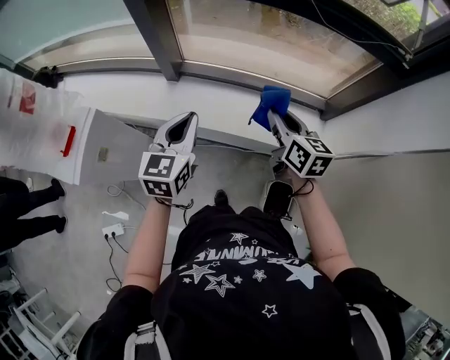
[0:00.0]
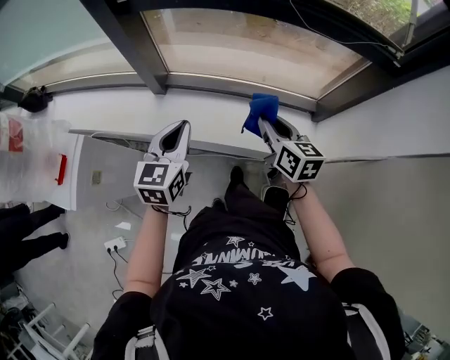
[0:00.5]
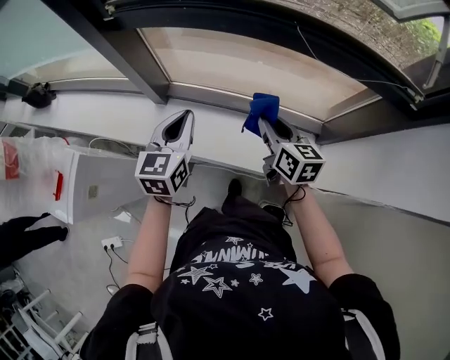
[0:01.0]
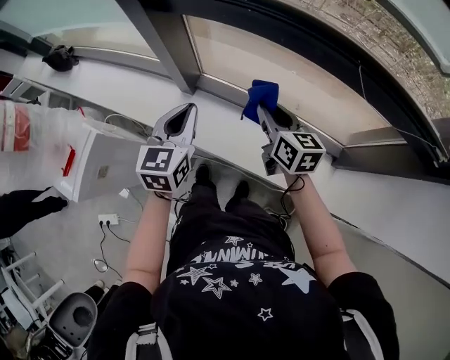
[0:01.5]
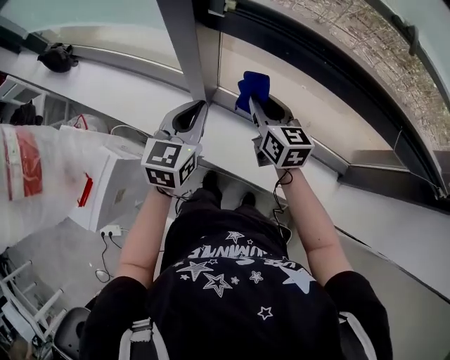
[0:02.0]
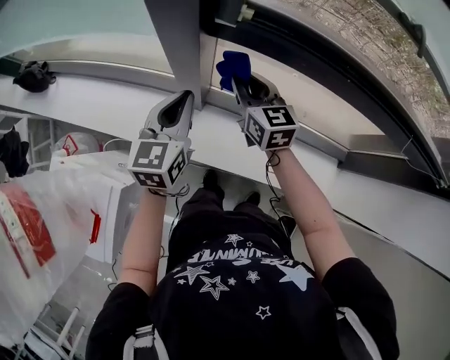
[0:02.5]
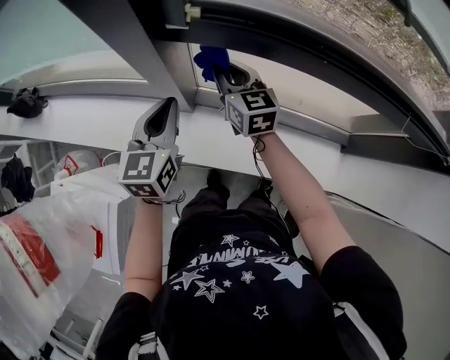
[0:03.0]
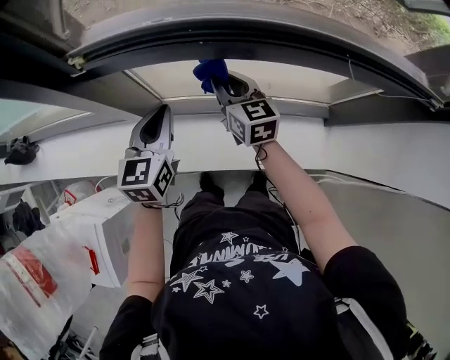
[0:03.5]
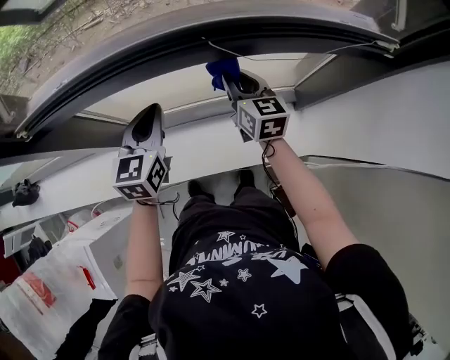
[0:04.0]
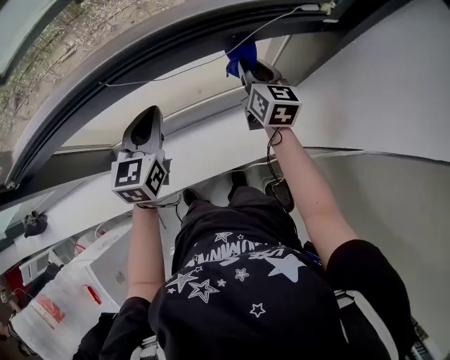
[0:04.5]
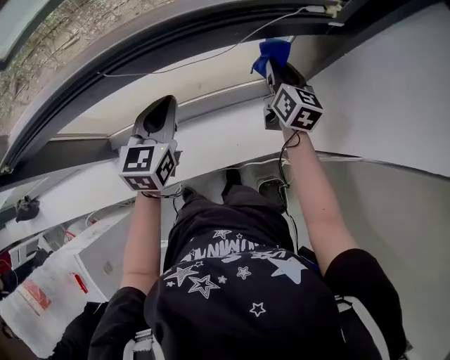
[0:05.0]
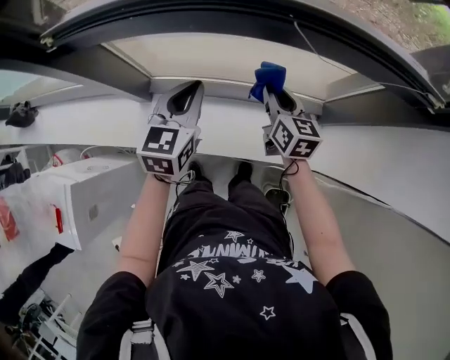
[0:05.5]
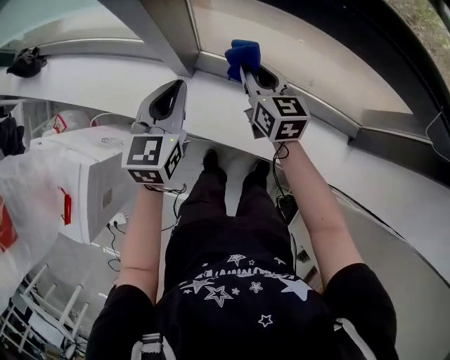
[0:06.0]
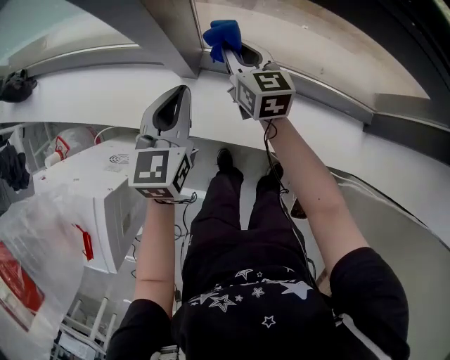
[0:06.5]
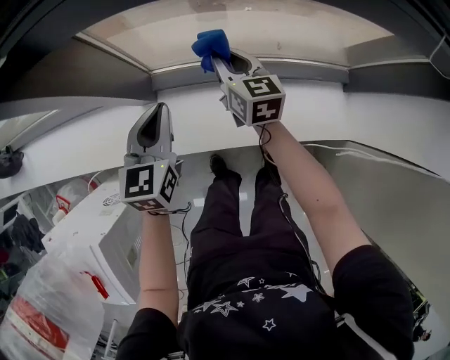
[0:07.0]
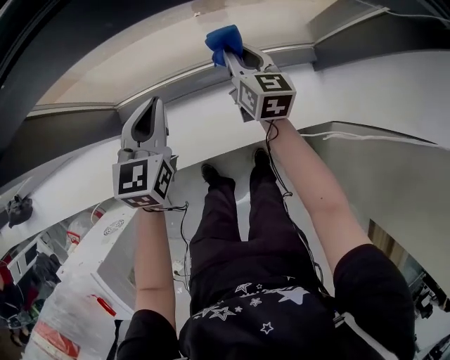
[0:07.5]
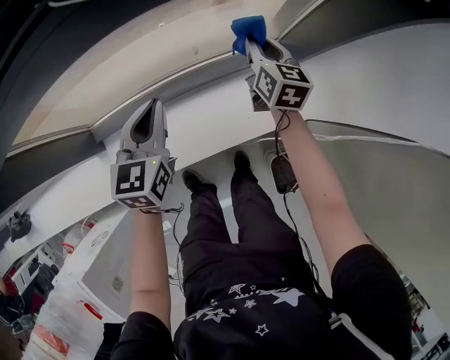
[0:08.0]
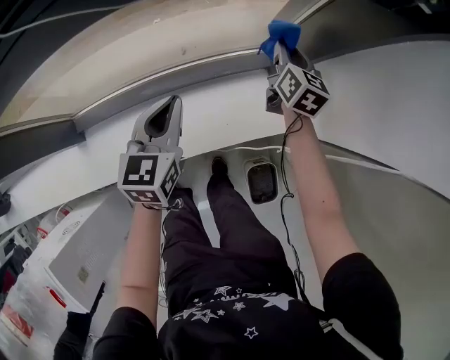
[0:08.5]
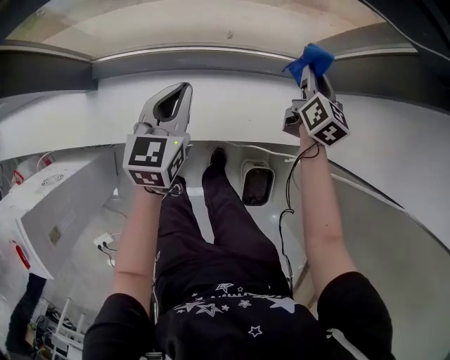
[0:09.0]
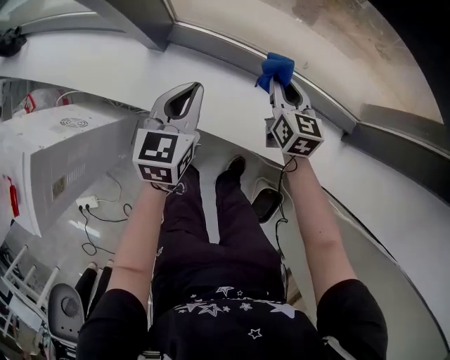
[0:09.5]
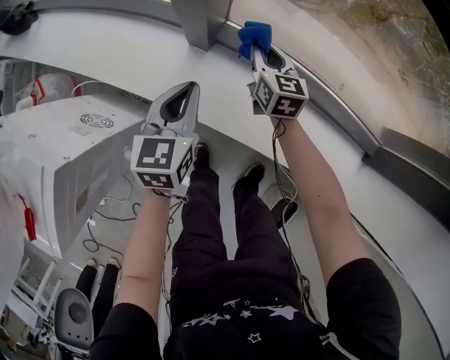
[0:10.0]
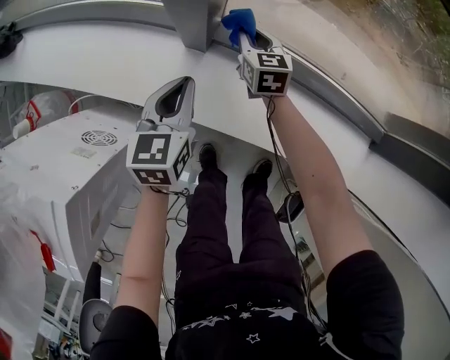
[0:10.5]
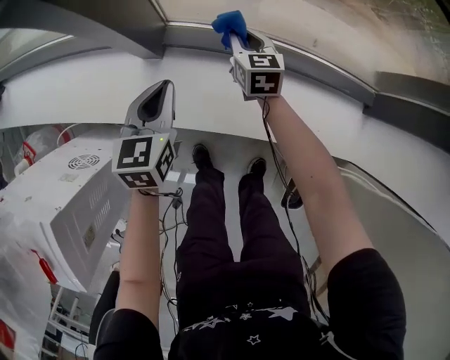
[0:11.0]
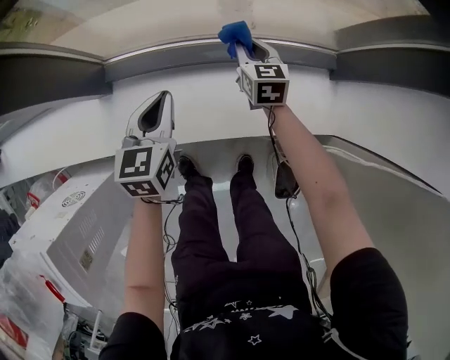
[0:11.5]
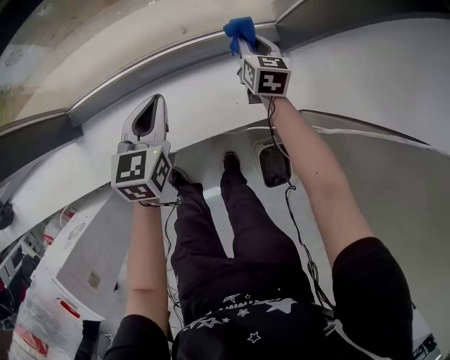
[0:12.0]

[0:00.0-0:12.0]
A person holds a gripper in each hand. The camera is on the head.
0:00.0 to 0:02.0: Both grippers move forward and to the left, some 35 cm.
0:02.0 to 0:04.0: Both grippers move to the right, about 30 cm. The left gripper changes its angle by approximately 20 degrees. Meanwhile the right gripper changes its angle by about 30 degrees.
0:04.0 to 0:06.0: The right gripper moves about 35 cm, and swivels approximately 30 degrees, while the left gripper ends up about 30 cm from where it was, and swivels some 20 degrees.
0:06.0 to 0:08.0: The right gripper changes place by some 50 cm, and rotates approximately 50 degrees. The left gripper changes place by about 35 cm, and rotates some 30 degrees.
0:08.0 to 0:10.0: Both grippers are carried some 50 cm. The left gripper changes its angle by approximately 40 degrees. The right gripper rotates roughly 50 degrees.
0:10.0 to 0:12.0: The two grippers travel together, some 50 cm. The right gripper turns by about 40 degrees. The left gripper turns by about 30 degrees.

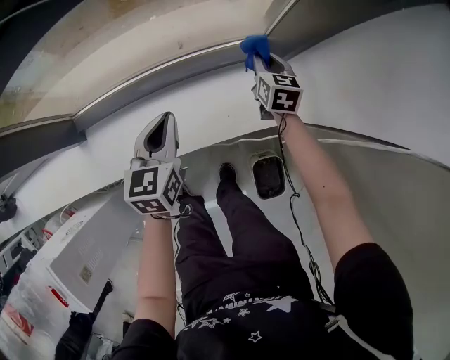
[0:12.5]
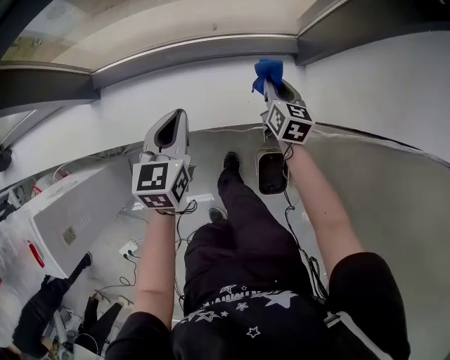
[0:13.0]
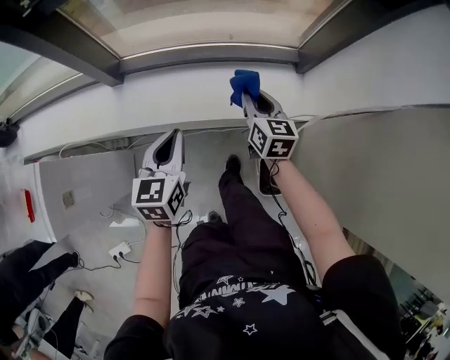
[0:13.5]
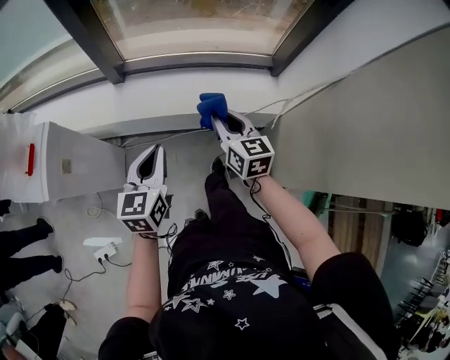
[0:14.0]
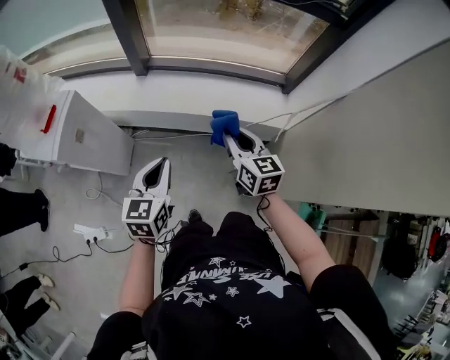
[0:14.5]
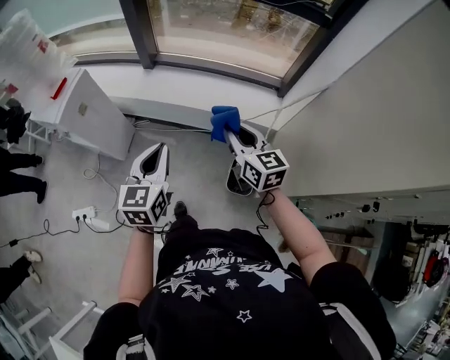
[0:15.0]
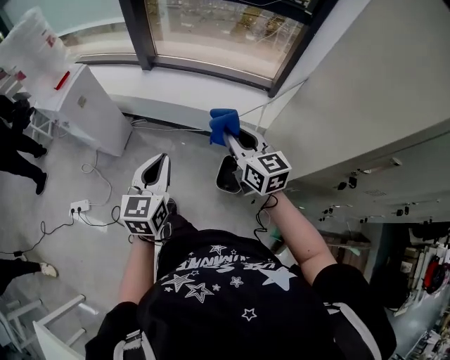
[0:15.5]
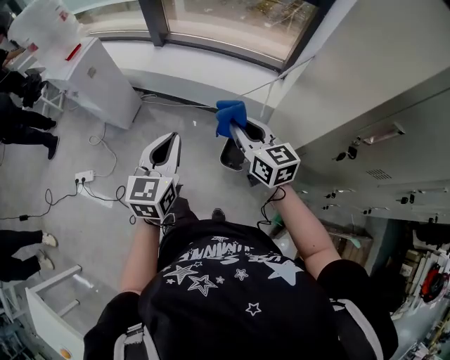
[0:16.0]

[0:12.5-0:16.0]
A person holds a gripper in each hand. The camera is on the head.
0:12.5 to 0:14.5: The two grippers travel together, approximately 50 cm. The right gripper swivels approximately 40 degrees.
0:14.5 to 0:16.0: Both grippers move backward and to the right, approximately 30 cm.

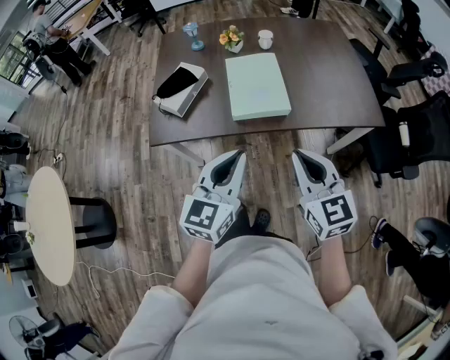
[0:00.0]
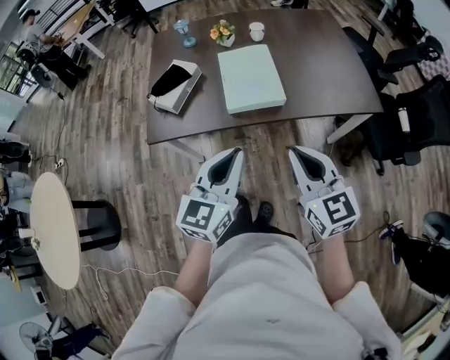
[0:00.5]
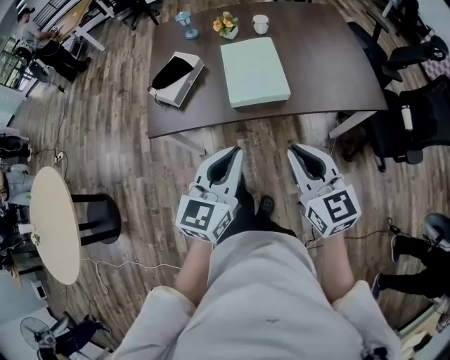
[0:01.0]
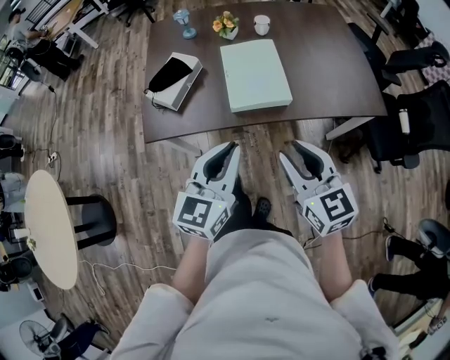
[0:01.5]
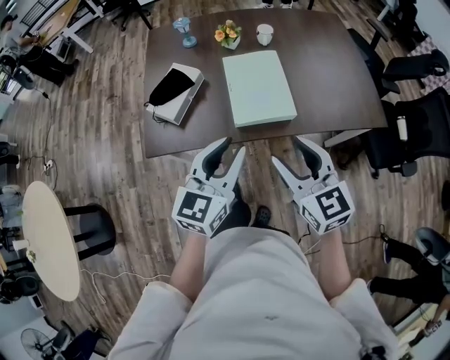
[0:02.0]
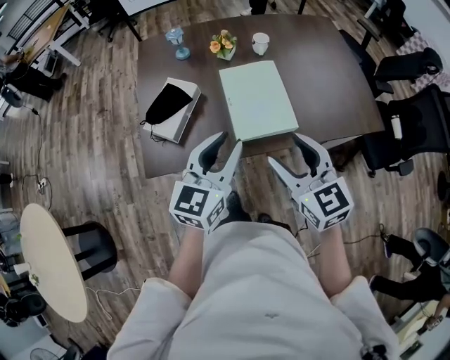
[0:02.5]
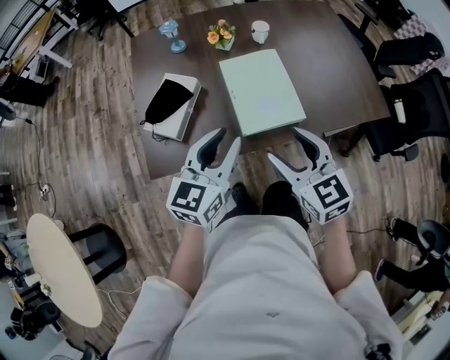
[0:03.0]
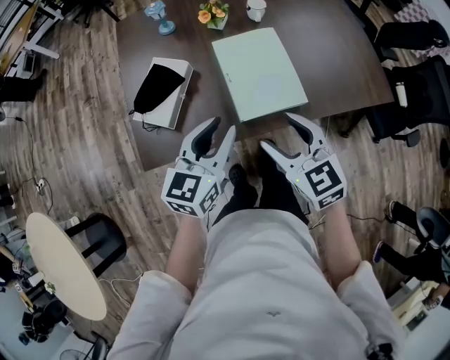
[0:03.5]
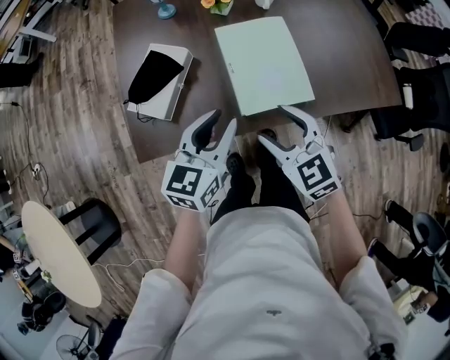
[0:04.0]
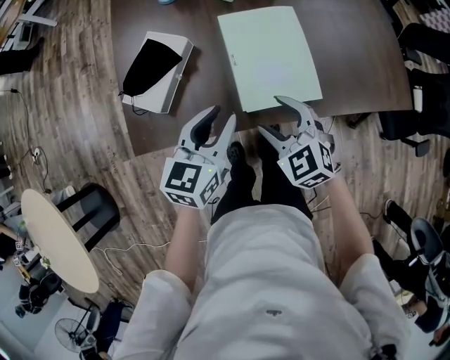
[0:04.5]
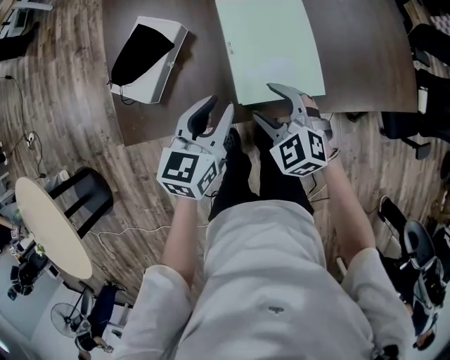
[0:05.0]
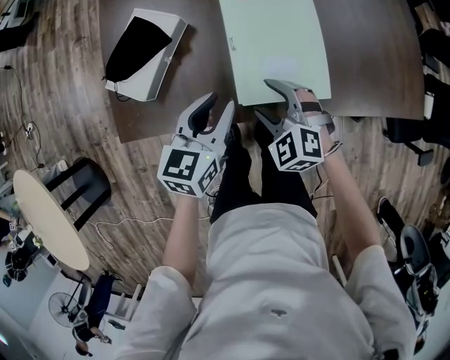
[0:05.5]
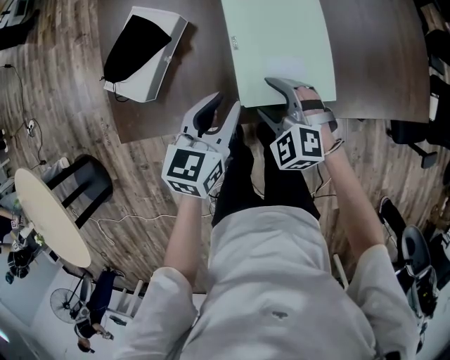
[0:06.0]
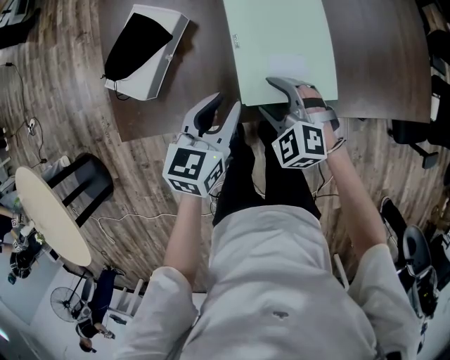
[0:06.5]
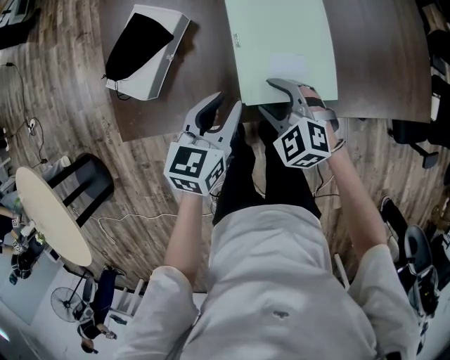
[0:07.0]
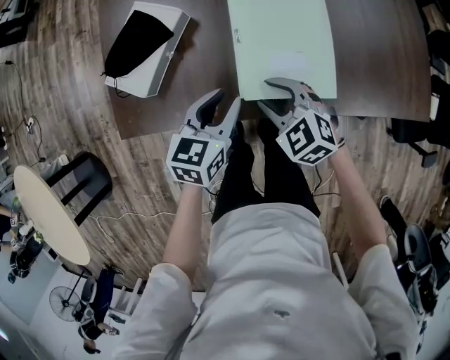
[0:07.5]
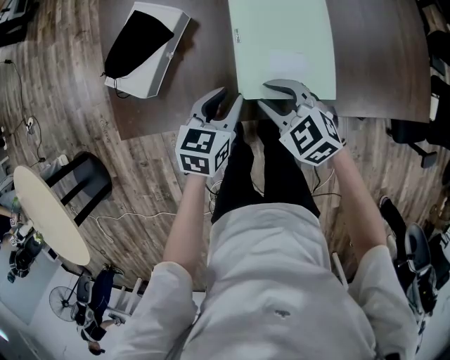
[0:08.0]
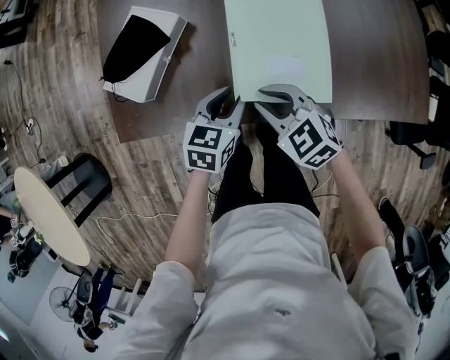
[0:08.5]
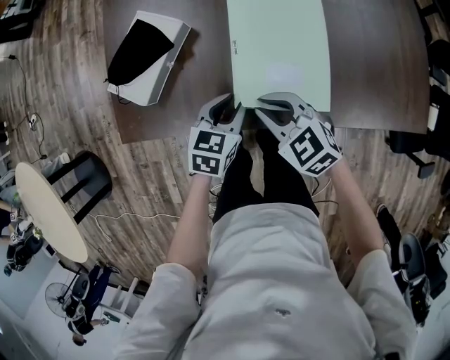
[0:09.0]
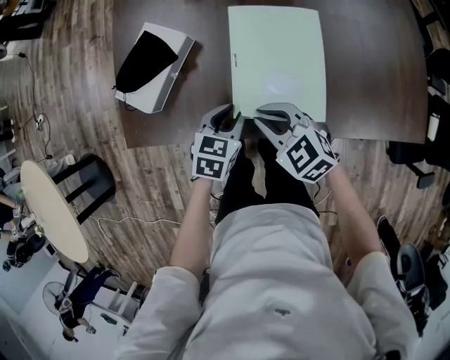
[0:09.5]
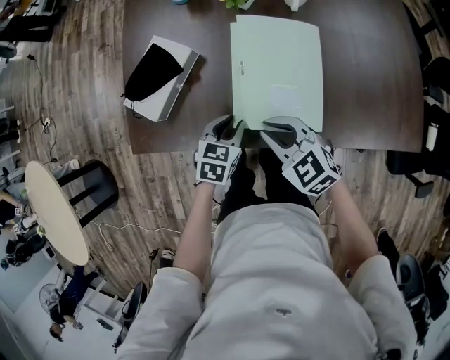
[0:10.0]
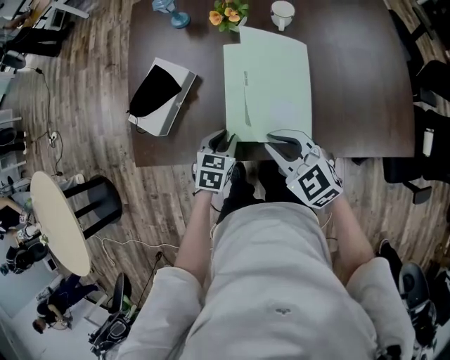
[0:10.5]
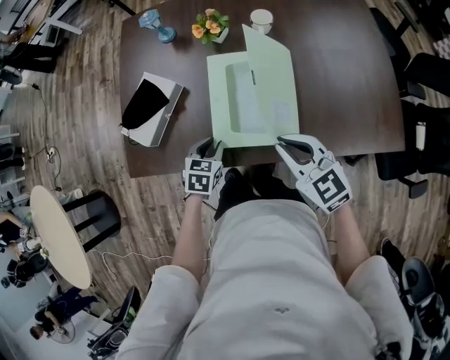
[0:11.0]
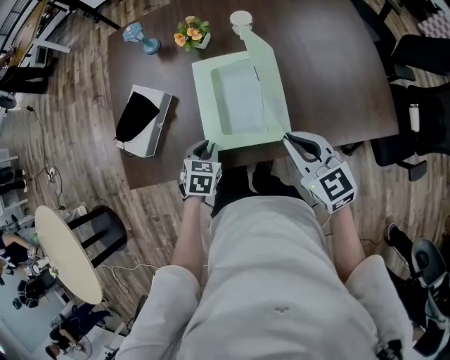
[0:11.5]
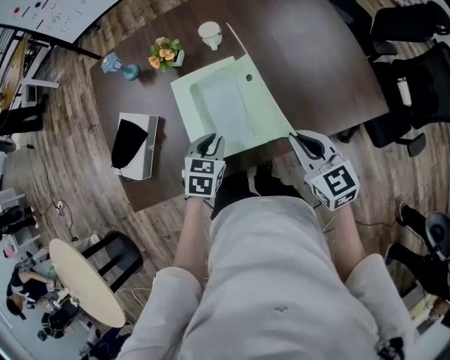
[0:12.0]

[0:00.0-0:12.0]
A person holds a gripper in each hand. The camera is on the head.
0:00.0 to 0:02.0: The right gripper shifts some 10 cm forward and to the left, and opens its fingers. The left gripper travels forward by about 10 cm, and opens up.
0:02.0 to 0:04.0: The left gripper heads forward, downward and to the left, covering some 15 cm, while the right gripper moves downward, forward and to the left, roughly 20 cm, and turns by approximately 20 degrees.
0:04.0 to 0:06.0: Both grippers travel together downward, some 15 cm. The right gripper changes its angle by approximately 30 degrees.
0:06.0 to 0:08.0: The left gripper is displaced downward by some 5 cm. Meanwhile the right gripper turns by some 20 degrees, and closes.
0:08.0 to 0:10.0: The right gripper is displaced upward by approximately 5 cm.
0:10.0 to 0:12.0: The right gripper is displaced to the right by roughly 20 cm, and rotates roughly 40 degrees. The left gripper is displaced to the right and upward by about 10 cm.
